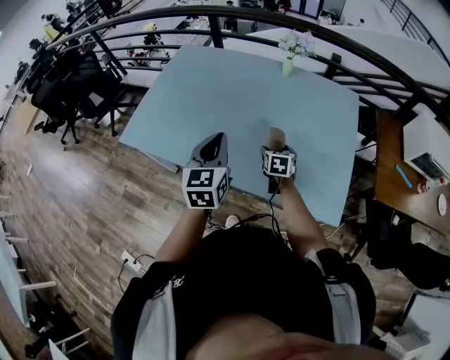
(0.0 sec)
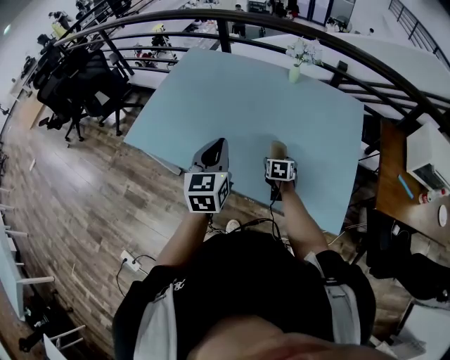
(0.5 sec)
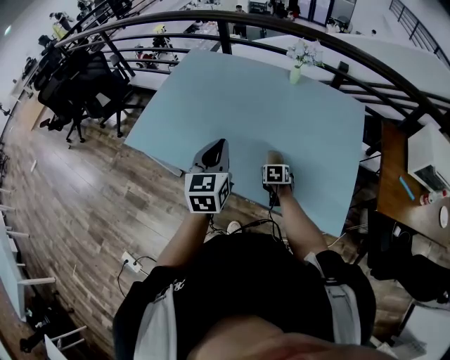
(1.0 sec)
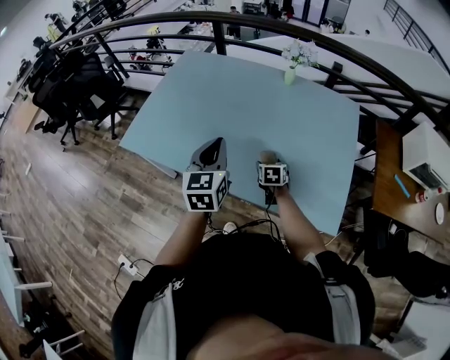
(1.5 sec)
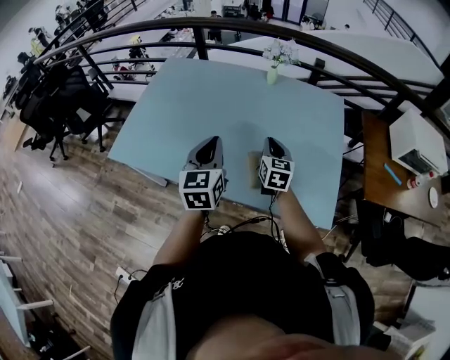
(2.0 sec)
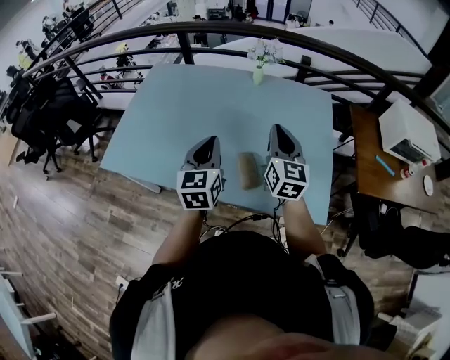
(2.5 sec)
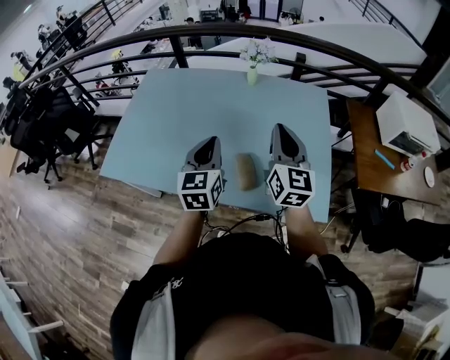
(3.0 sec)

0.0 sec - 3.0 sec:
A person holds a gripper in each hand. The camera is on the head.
1.5 sec - 3.0 sec: The right gripper heads upward, covering some 35 cm, tips its fingers upward by about 50 degrees, and closes. Meanwhile the left gripper heads to the right, covering approximately 5 cm.

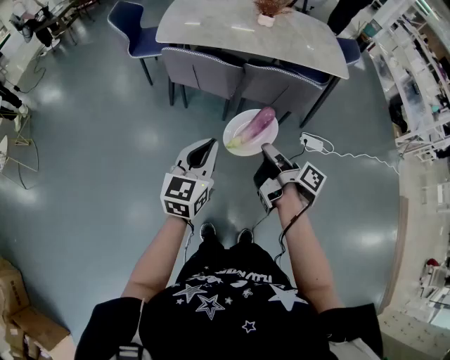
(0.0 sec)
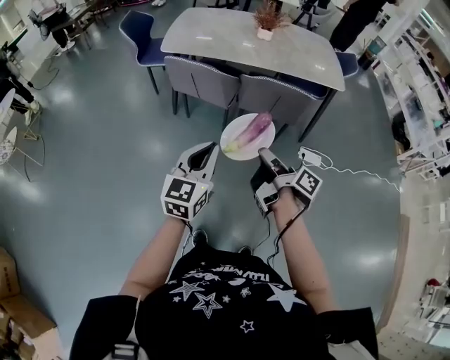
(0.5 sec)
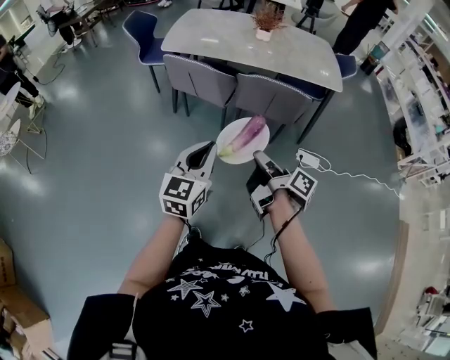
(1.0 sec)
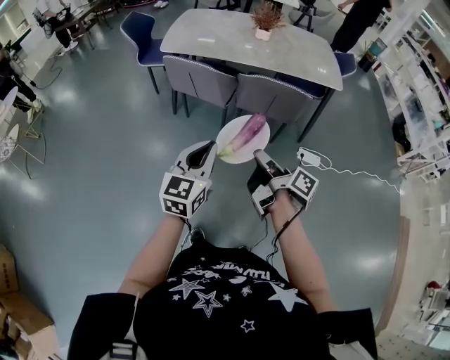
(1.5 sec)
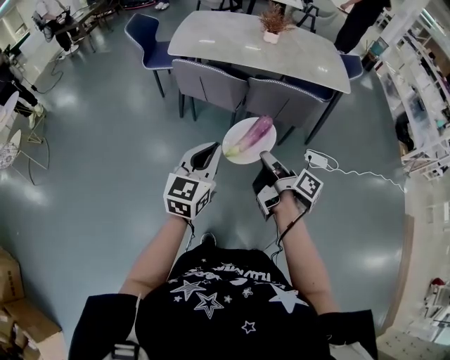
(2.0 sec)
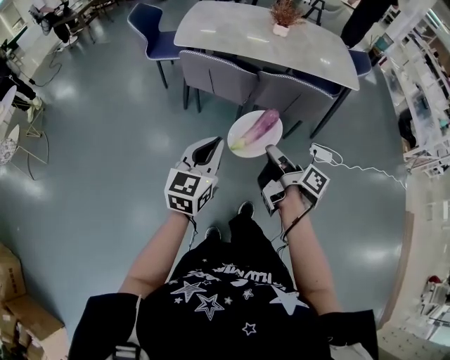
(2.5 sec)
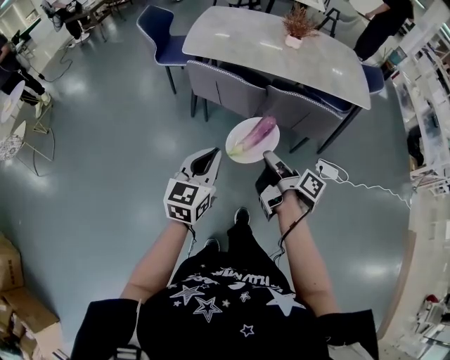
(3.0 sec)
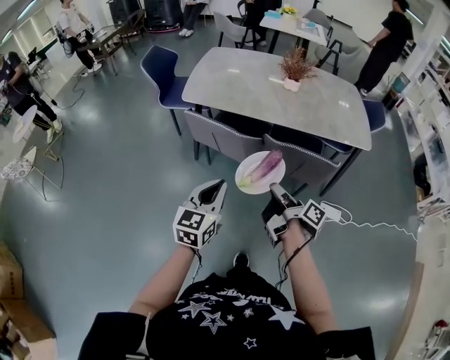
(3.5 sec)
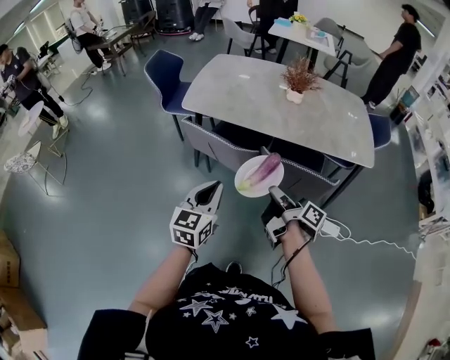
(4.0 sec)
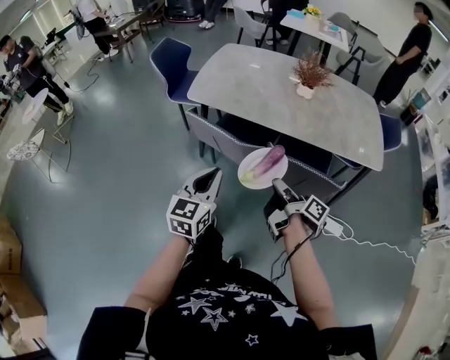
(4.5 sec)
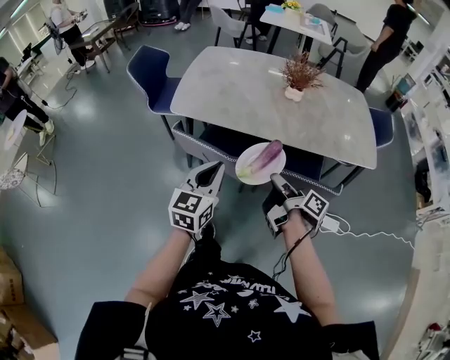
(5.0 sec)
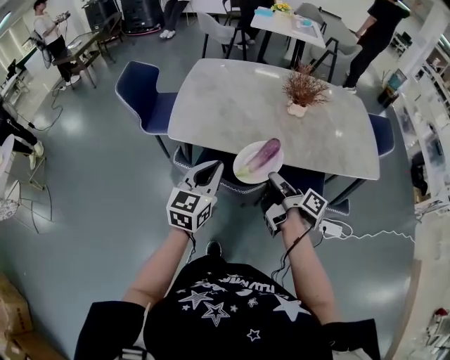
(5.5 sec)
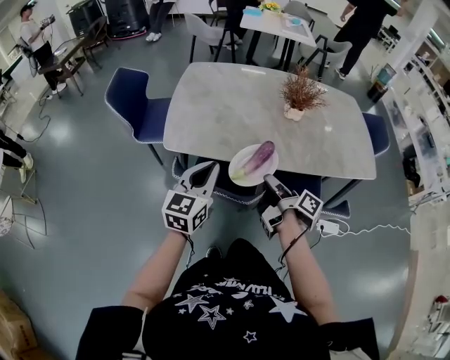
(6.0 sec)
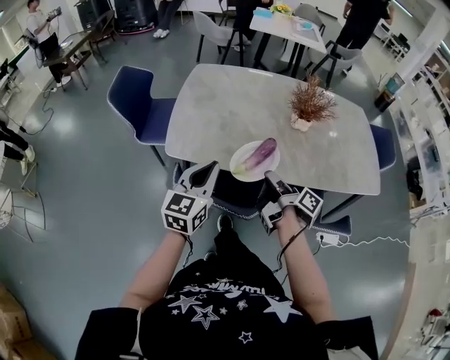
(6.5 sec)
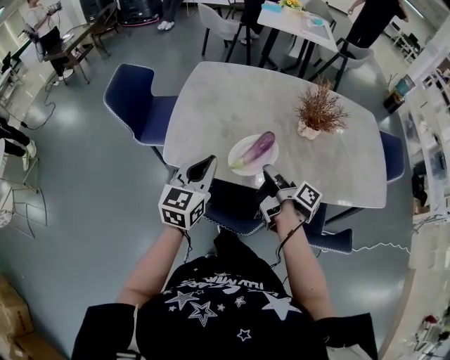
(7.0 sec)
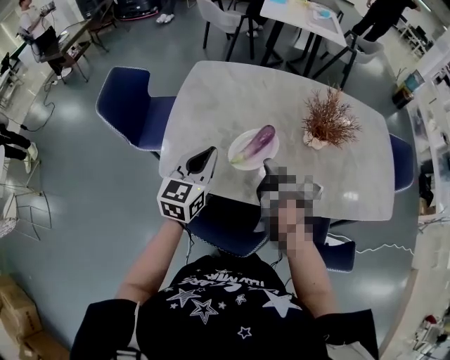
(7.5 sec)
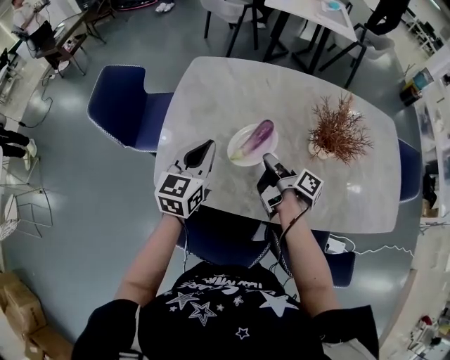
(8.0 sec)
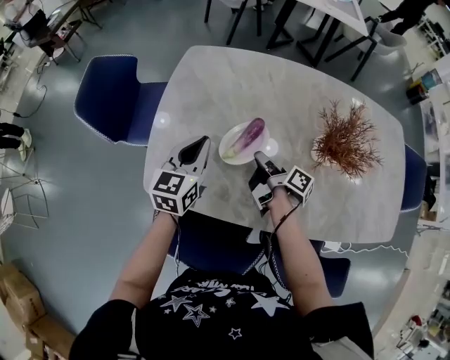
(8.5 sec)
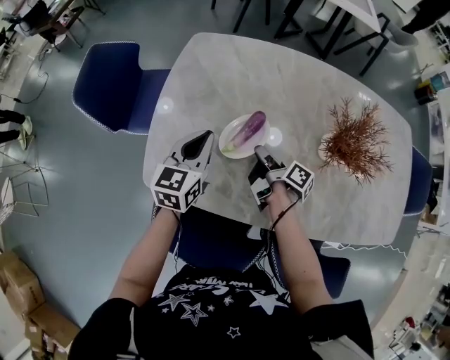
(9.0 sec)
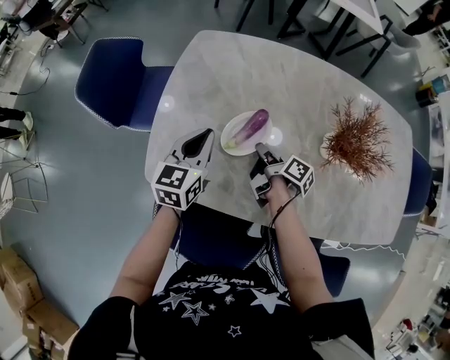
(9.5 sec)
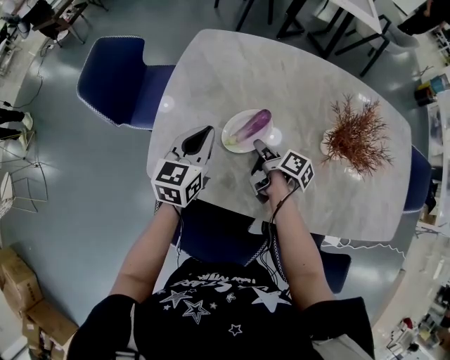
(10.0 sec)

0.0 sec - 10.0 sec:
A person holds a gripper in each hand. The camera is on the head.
2.0 sec - 4.0 sec: The left gripper moves some 20 cm.
4.0 sec - 6.0 sec: The left gripper shifts by roughly 30 cm.
6.0 sec - 8.0 sec: The left gripper ends up about 30 cm from where it was.
8.0 sec - 10.0 sec: The left gripper is displaced downward by approximately 5 cm.

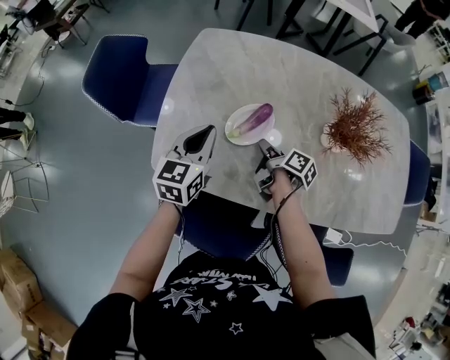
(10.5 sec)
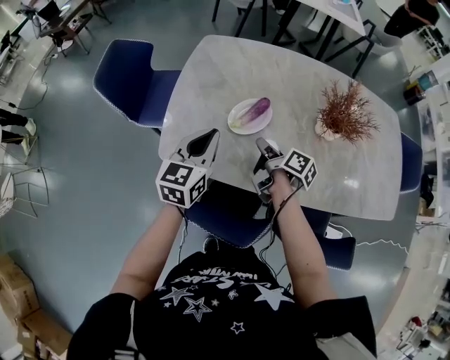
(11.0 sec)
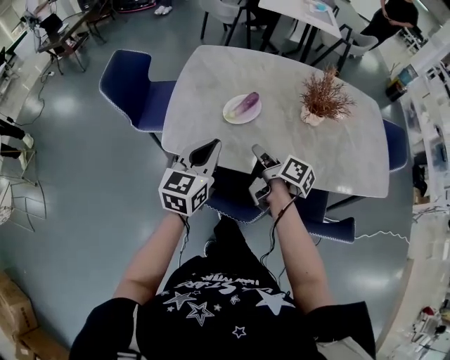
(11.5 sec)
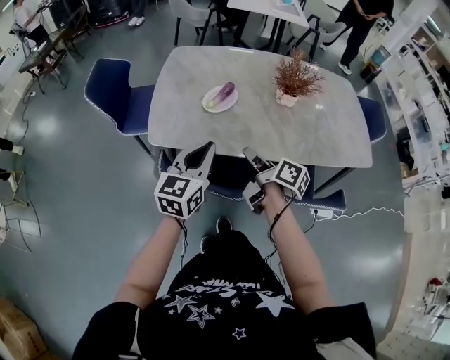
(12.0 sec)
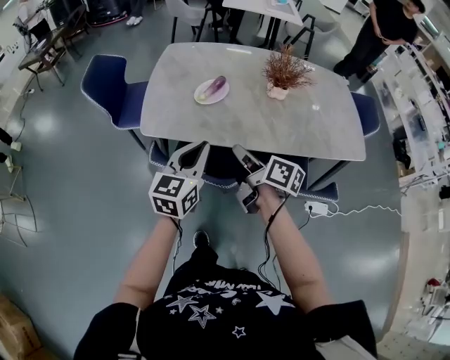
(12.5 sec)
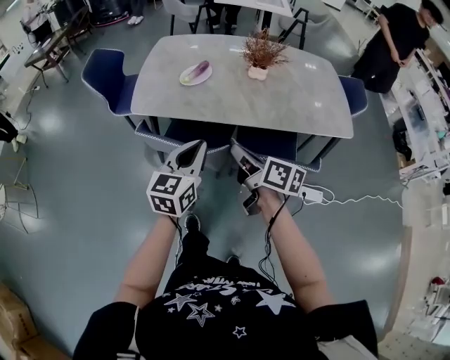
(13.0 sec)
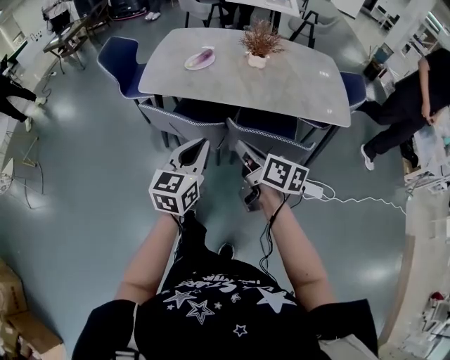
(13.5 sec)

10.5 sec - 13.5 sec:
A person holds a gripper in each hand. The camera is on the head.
10.5 sec - 12.0 sec: The left gripper moves approximately 30 cm.
12.0 sec - 13.5 sec: The left gripper shifts by about 30 cm.

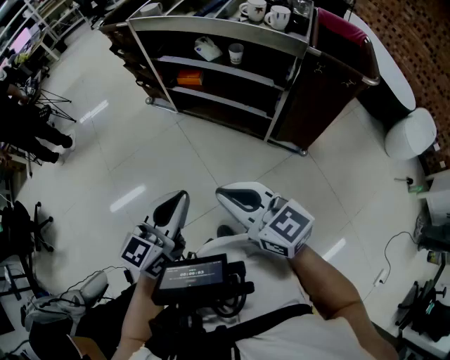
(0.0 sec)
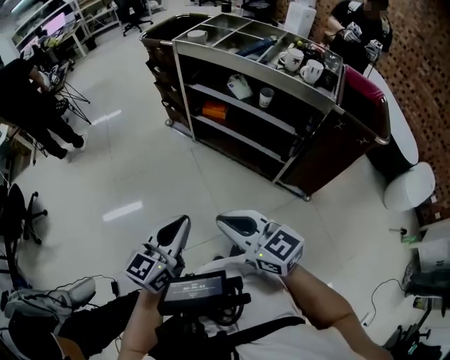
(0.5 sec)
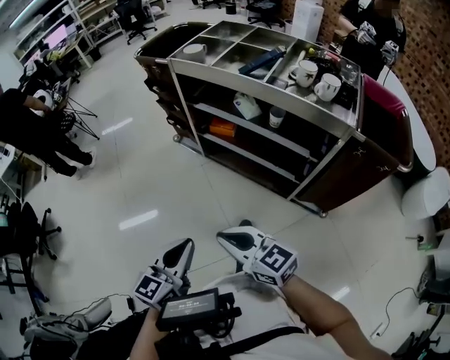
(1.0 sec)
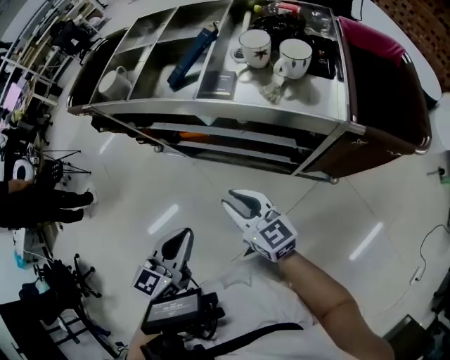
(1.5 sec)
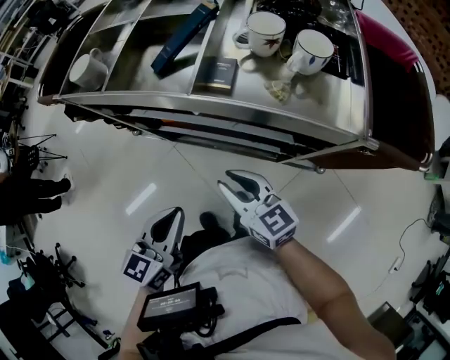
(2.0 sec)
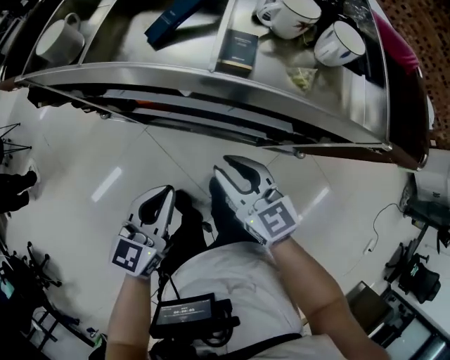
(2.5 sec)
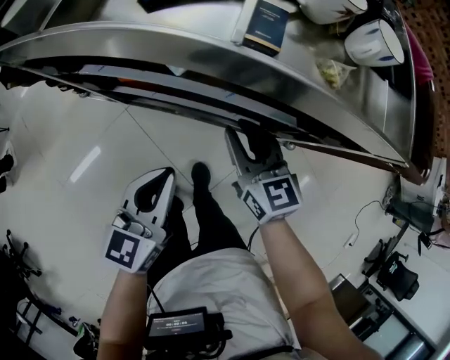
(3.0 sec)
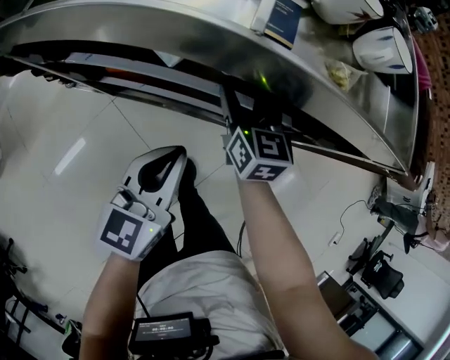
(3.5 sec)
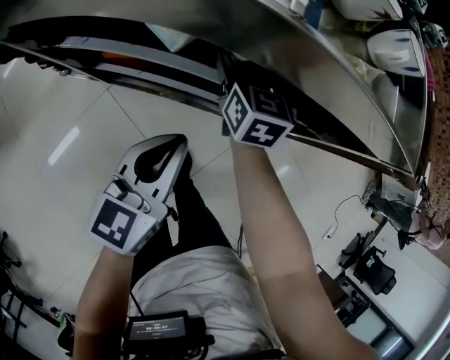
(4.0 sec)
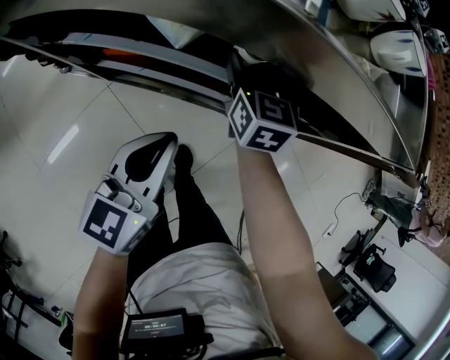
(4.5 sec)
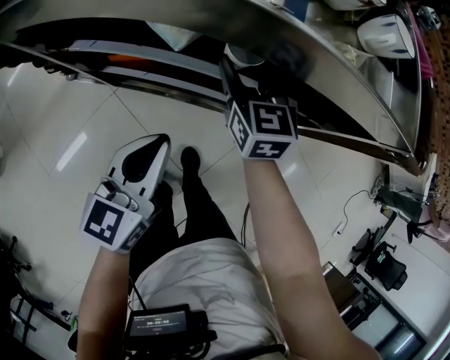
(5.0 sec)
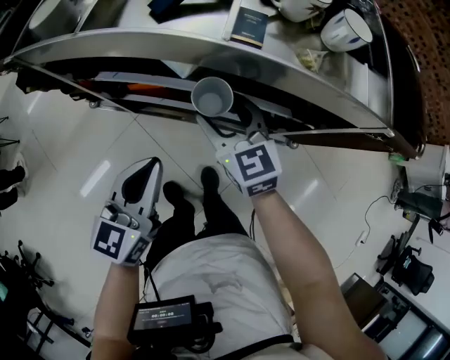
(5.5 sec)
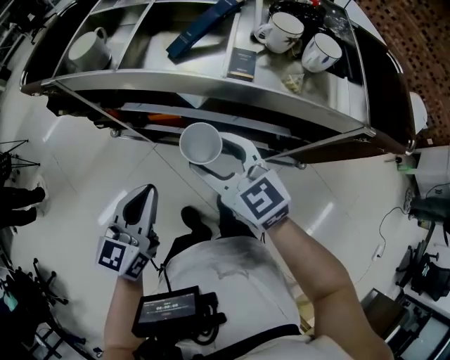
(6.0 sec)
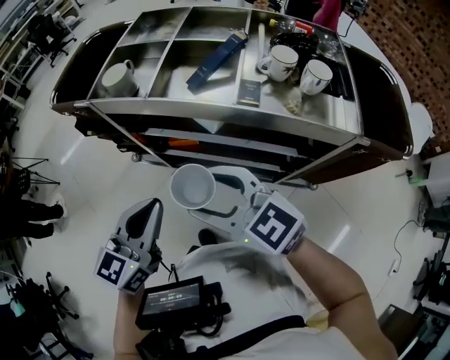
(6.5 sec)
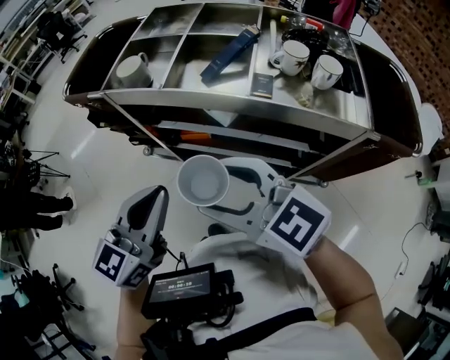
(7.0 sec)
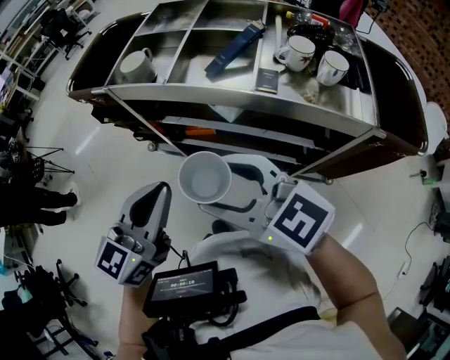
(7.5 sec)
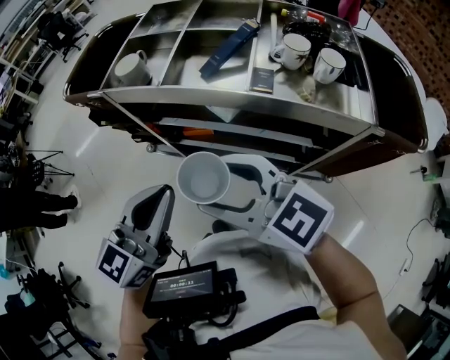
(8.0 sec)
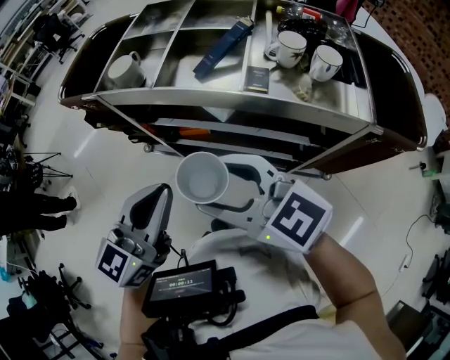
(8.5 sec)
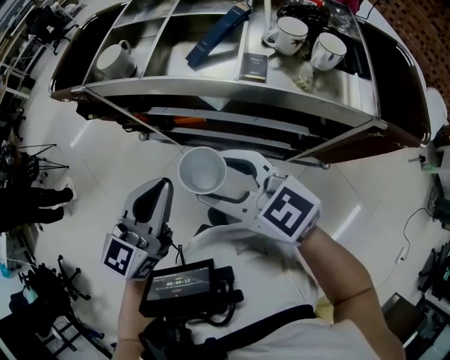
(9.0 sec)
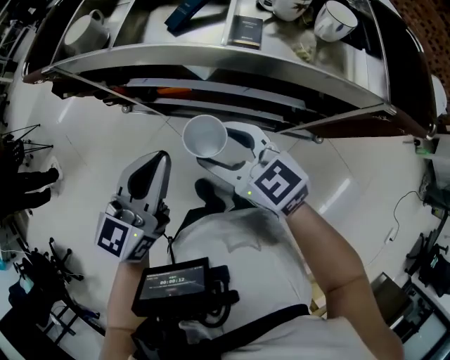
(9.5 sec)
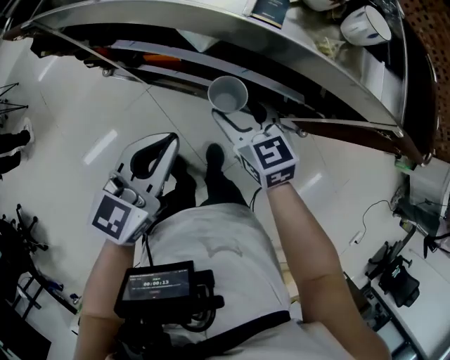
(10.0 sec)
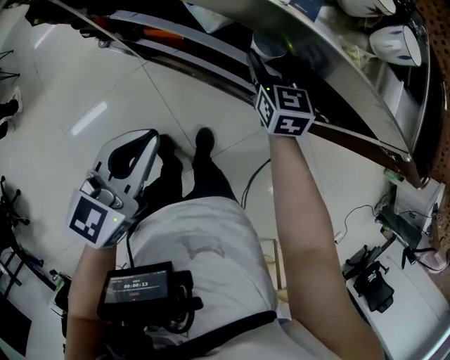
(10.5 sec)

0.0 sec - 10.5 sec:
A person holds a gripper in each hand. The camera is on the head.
0.0 sec - 2.0 sec: The two grippers go about 40 cm forward. The right gripper rotates approximately 20 degrees.
2.0 sec - 4.0 sec: The right gripper shifts some 25 cm forward and downward, changes its angle by roughly 40 degrees, and opens up; the left gripper travels forward and downward by some 15 cm.
4.0 sec - 6.5 sec: The right gripper shifts by some 40 cm, and rotates roughly 60 degrees. Meanwhile the left gripper goes approximately 20 cm upward.
6.5 sec - 8.5 sec: The left gripper ends up roughly 5 cm from where it was.
8.5 sec - 10.5 sec: The right gripper heads downward, forward and to the right, covering about 40 cm, and rotates approximately 40 degrees; the left gripper shifts some 20 cm downward.
